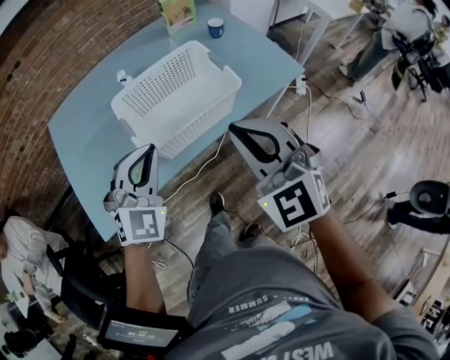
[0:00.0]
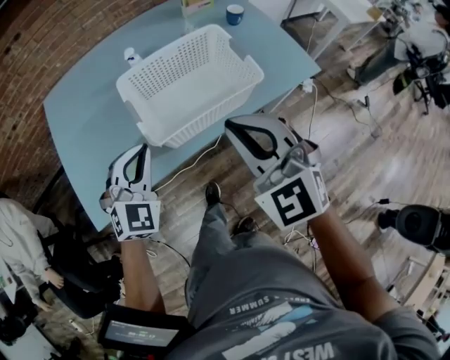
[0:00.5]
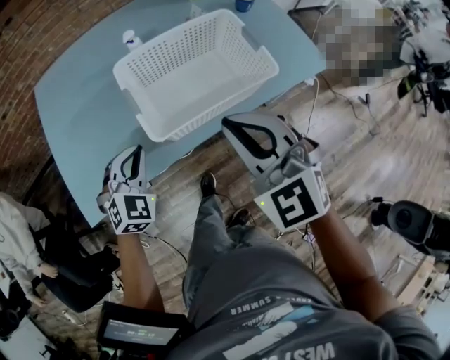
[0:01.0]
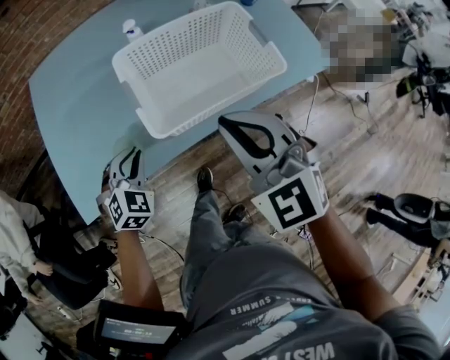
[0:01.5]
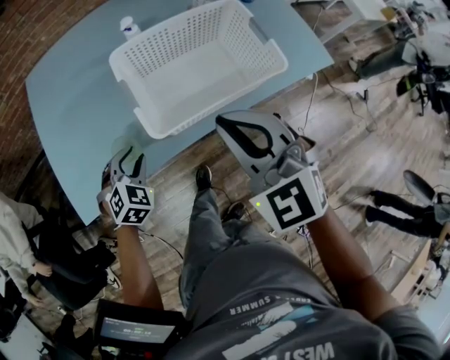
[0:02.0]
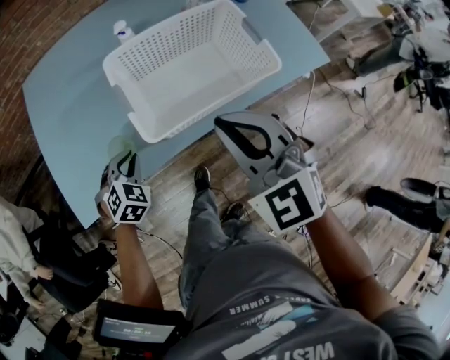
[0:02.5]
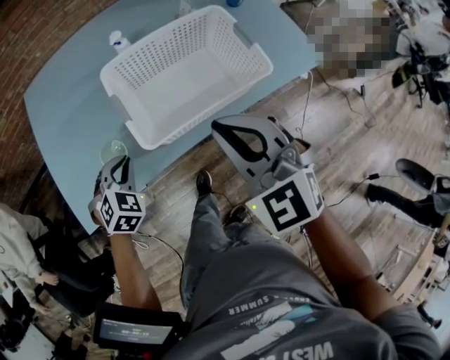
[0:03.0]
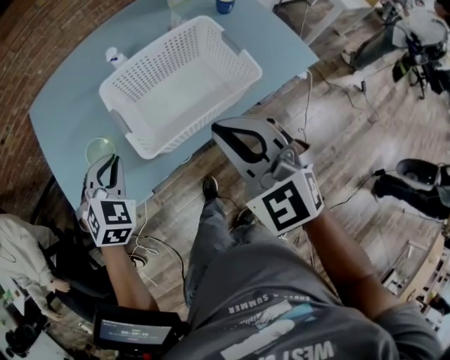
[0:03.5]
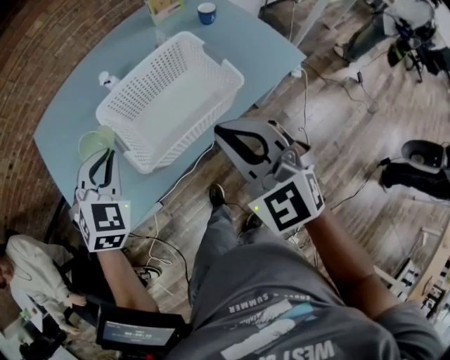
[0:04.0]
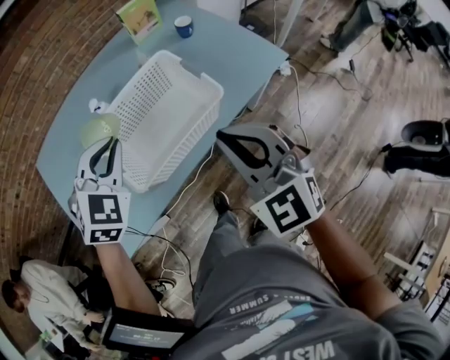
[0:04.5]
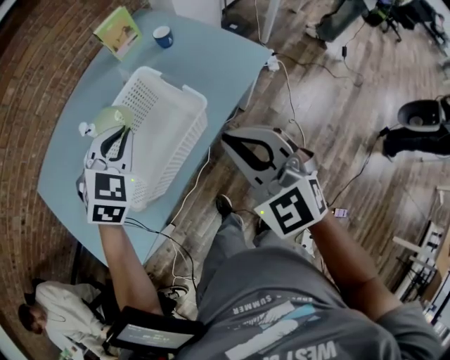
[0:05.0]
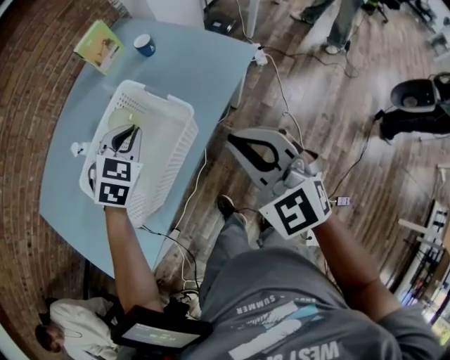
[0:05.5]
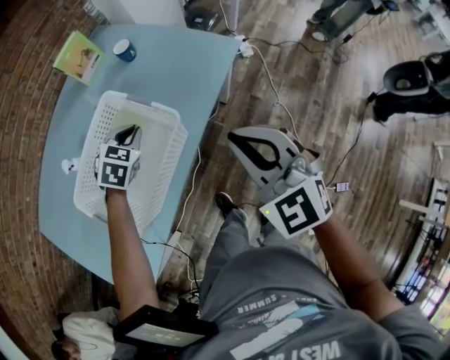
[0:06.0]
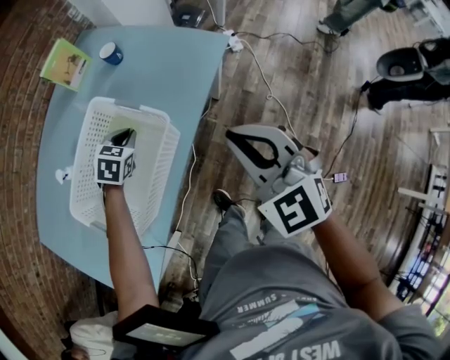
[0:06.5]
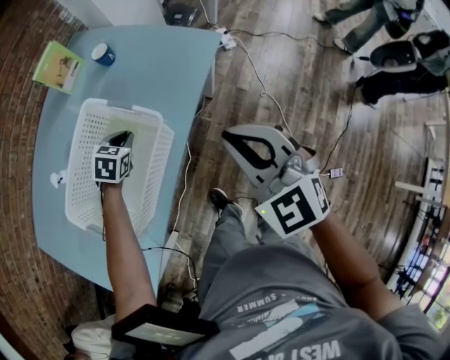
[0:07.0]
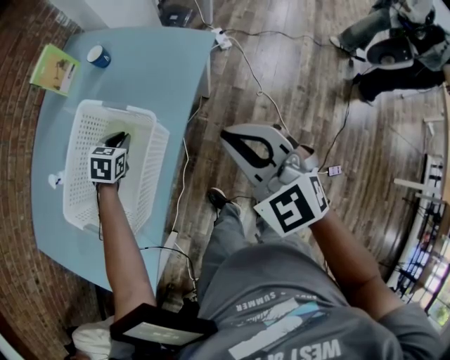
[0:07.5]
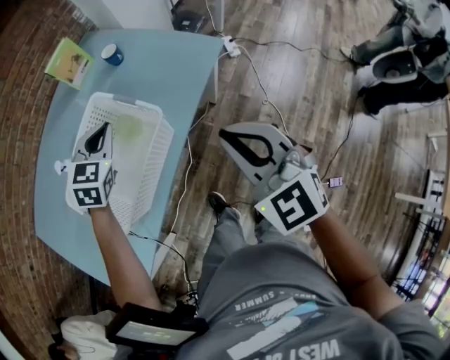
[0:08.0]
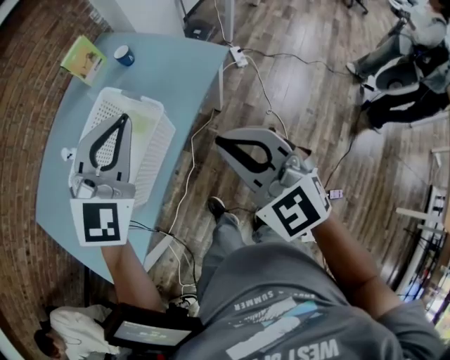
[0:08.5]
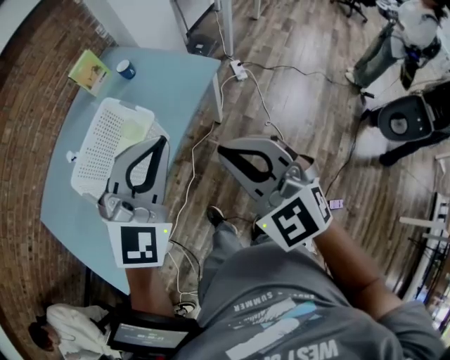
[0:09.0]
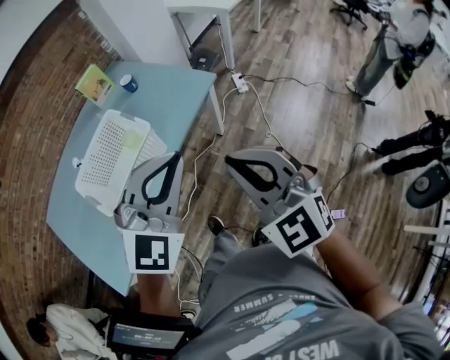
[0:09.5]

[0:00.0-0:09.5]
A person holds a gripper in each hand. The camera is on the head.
0:00.0 to 0:02.0: The right gripper goes roughly 15 cm to the left, downward and forward, while the left gripper shifts roughly 30 cm downward and to the left, tilts its fingers some 30 degrees downward, and opens its fingers.
0:02.0 to 0:04.0: The right gripper heads to the right, covering about 5 cm. The left gripper shifts approximately 20 cm upward, and closes its fingers.
0:04.0 to 0:05.5: The right gripper shifts roughly 15 cm to the right. Meanwhile the left gripper shifts some 25 cm to the right and forward, and rotates some 20 degrees.
0:05.5 to 0:07.5: The left gripper goes some 15 cm downward, and swivels approximately 20 degrees, while the right gripper travels to the right by about 5 cm.
0:07.5 to 0:09.5: The right gripper is displaced backward, upward and to the right by about 20 cm, while the left gripper goes about 50 cm upward, backward and to the right, and angles its fingers upward, by approximately 40 degrees.

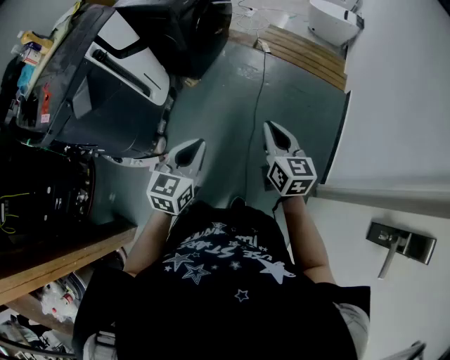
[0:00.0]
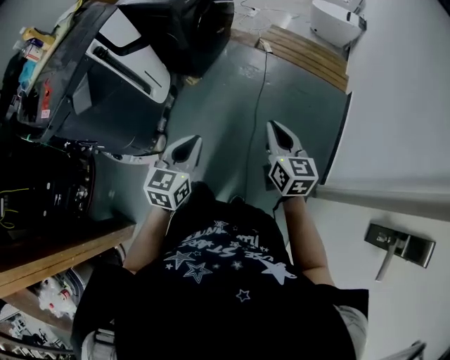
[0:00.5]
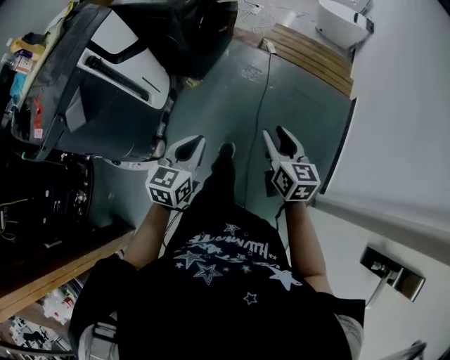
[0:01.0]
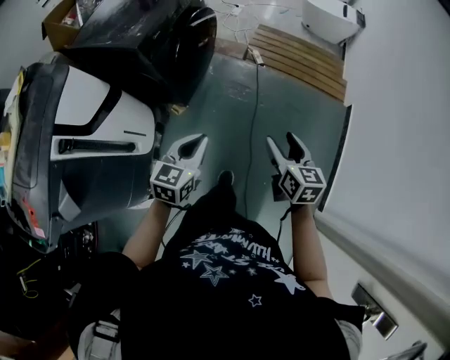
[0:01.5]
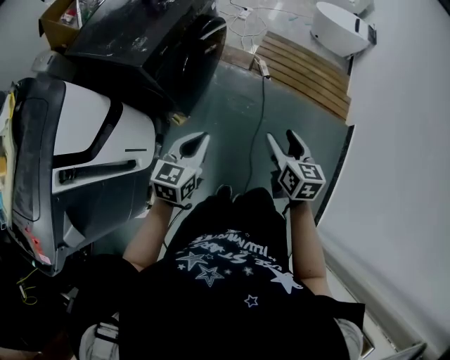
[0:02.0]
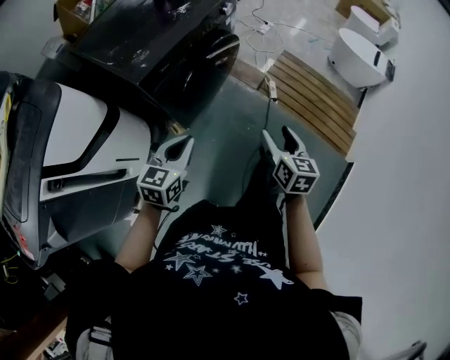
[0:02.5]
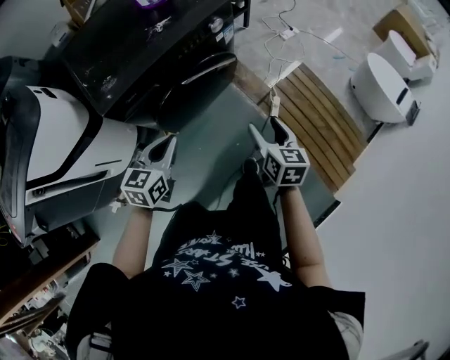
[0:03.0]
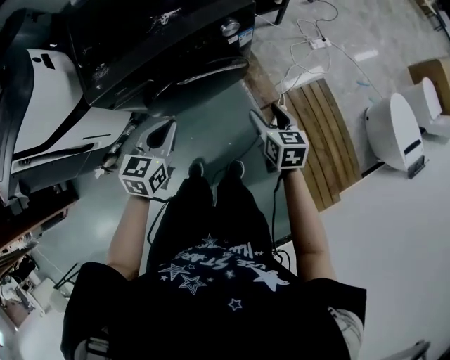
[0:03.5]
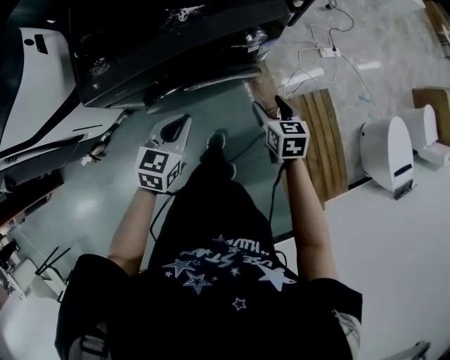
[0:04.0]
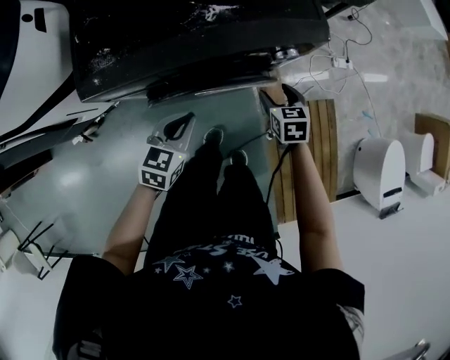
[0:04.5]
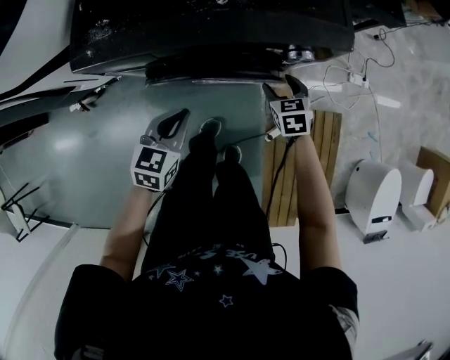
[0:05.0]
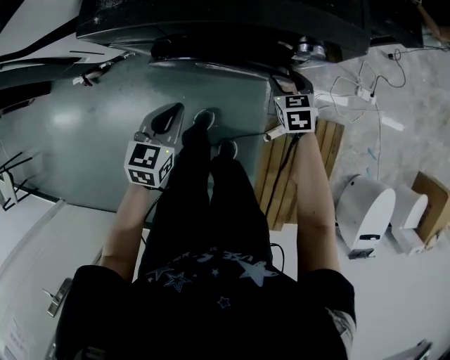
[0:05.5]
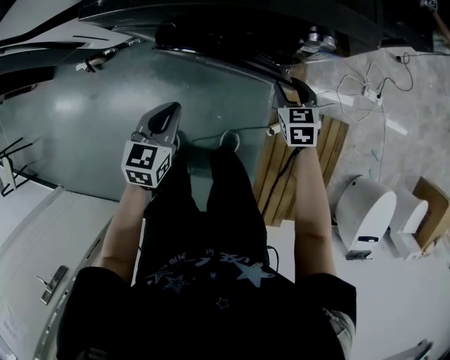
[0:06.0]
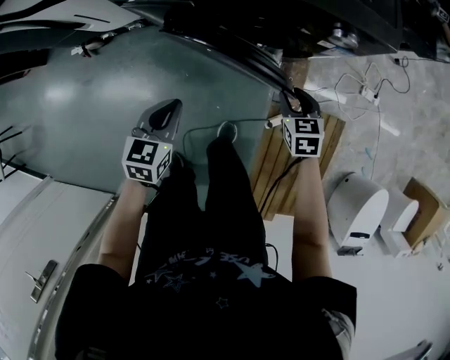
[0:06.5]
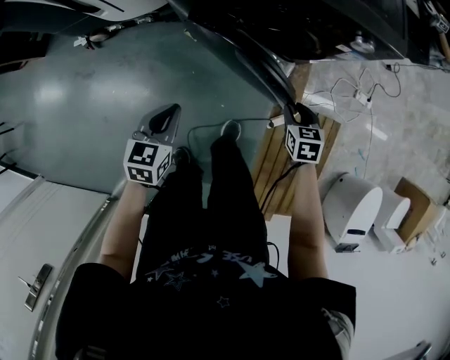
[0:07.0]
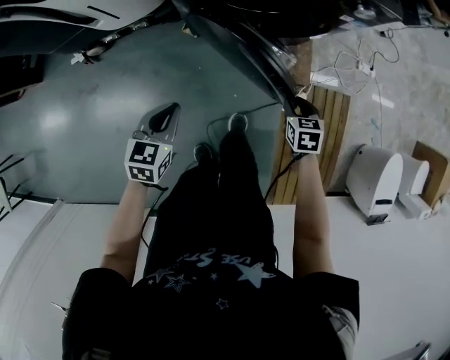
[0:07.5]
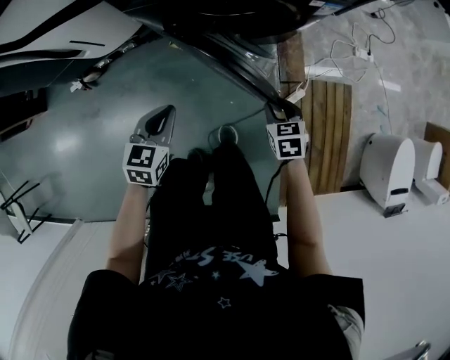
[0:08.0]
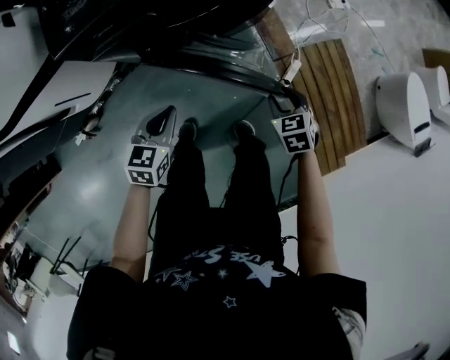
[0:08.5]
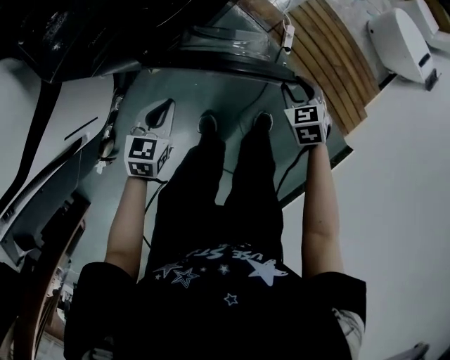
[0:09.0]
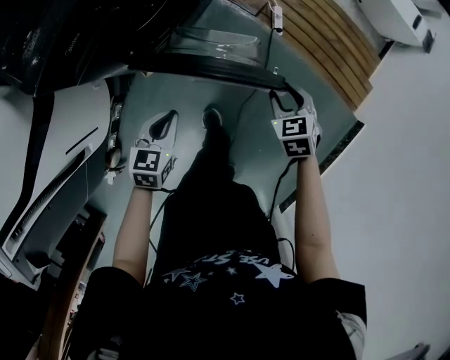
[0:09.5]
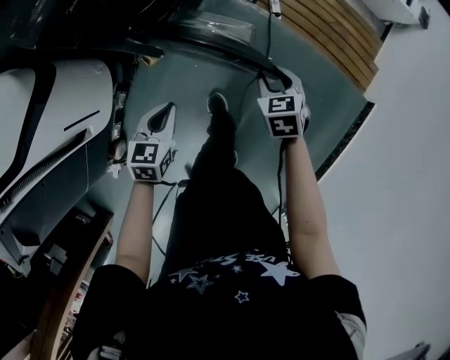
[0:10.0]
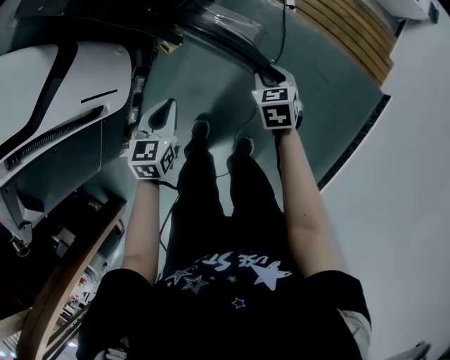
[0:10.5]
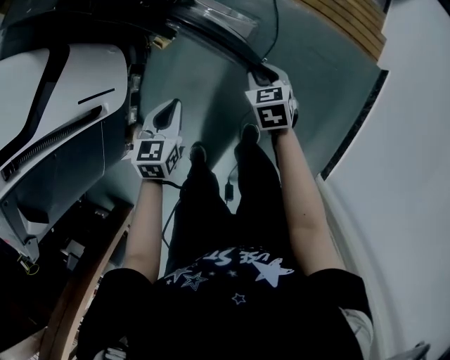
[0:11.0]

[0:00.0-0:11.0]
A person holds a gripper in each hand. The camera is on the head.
0:00.0 to 0:02.0: Both grippers are carried forward, about 50 cm. The right gripper opens its fingers.
0:02.0 to 0:03.5: The right gripper shifts by approximately 50 cm, and rotates some 50 degrees; the left gripper shifts by roughly 35 cm, and changes its angle by approximately 40 degrees.
0:03.5 to 0:05.5: The left gripper travels downward by about 10 cm, and swivels about 30 degrees, while the right gripper shifts by some 30 cm, and rolls counterclockwise, seen from behind, by approximately 40 degrees.
0:05.5 to 0:07.5: The left gripper moves backward and to the left, about 25 cm. The right gripper goes approximately 25 cm backward.
0:07.5 to 0:09.0: The left gripper ends up some 15 cm from where it was, and turns by some 50 degrees. Meanwhile the right gripper ends up about 10 cm from where it was, and turns by some 30 degrees.
0:09.0 to 0:11.0: Both grippers travel together backward, roughly 30 cm. The right gripper turns by approximately 30 degrees.

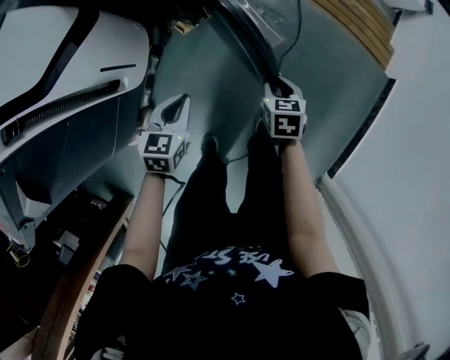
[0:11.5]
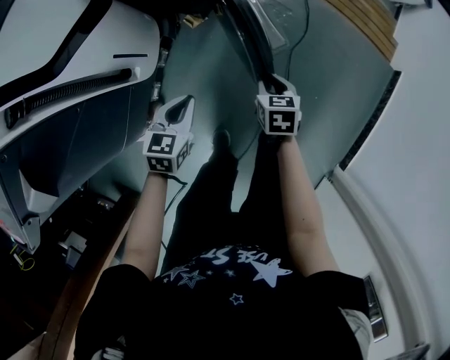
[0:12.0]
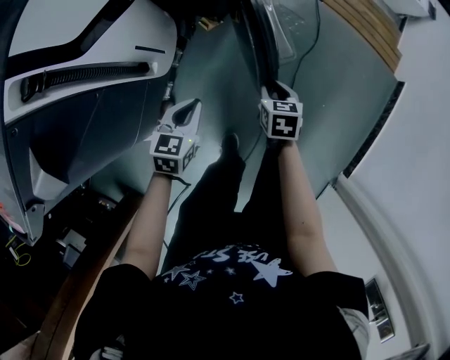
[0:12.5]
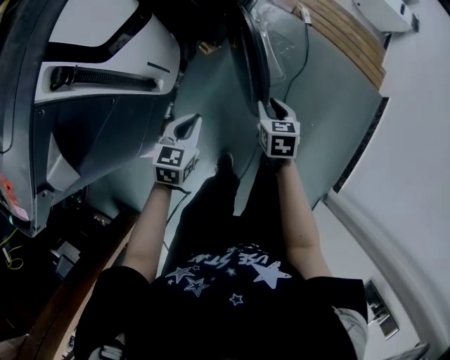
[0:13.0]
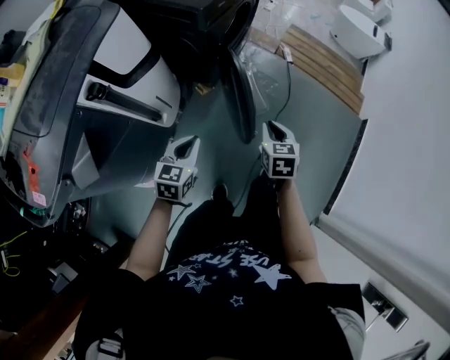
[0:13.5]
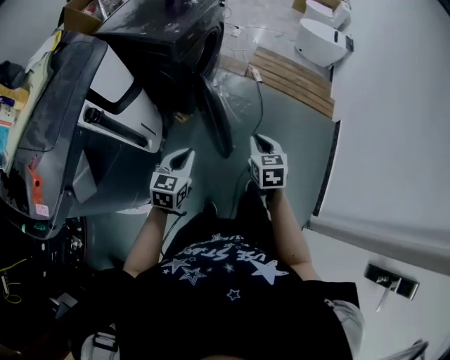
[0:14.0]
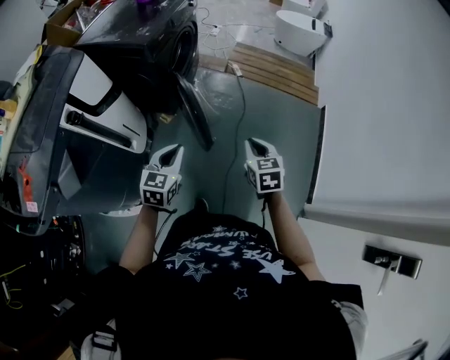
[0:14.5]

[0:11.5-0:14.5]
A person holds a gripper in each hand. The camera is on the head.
0:11.5 to 0:13.0: The left gripper heads to the left and backward, covering some 15 cm; the right gripper travels to the left, backward and upward by roughly 15 cm.
0:13.0 to 0:14.5: The right gripper heads upward, to the right and backward, covering about 25 cm, and closes. Meanwhile the left gripper is displaced upward and to the right by some 20 cm.

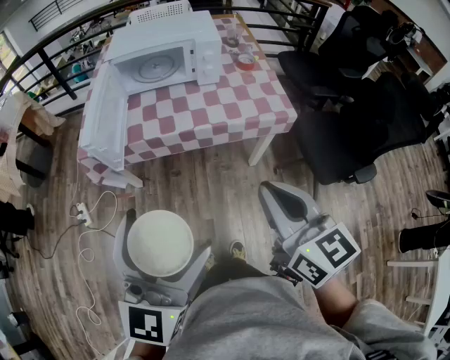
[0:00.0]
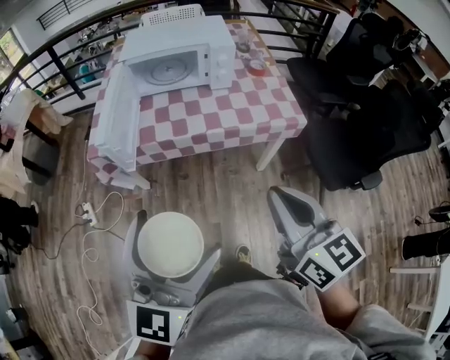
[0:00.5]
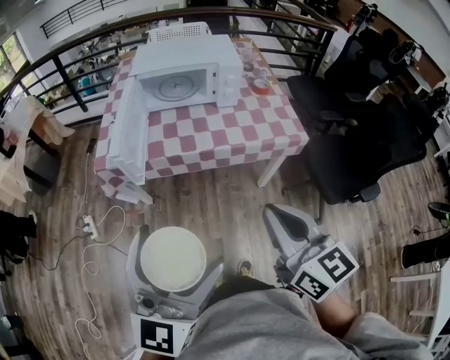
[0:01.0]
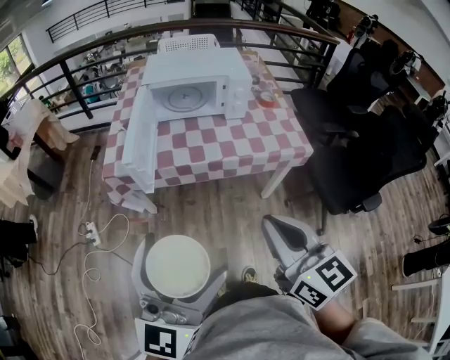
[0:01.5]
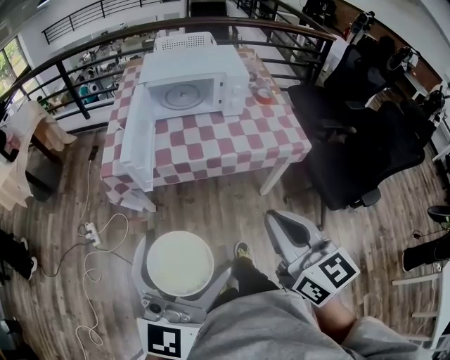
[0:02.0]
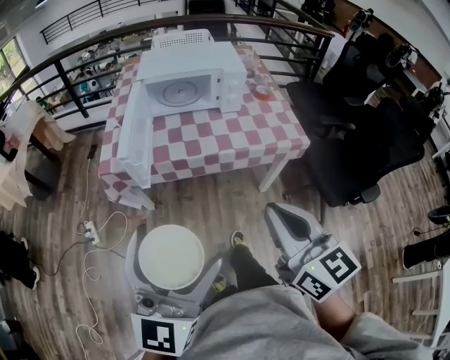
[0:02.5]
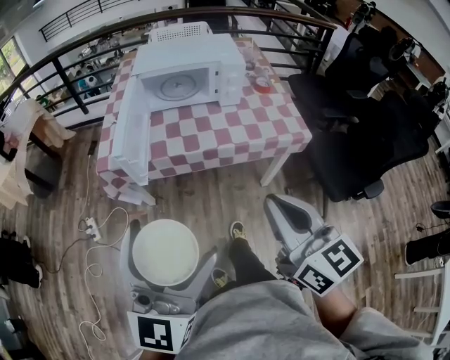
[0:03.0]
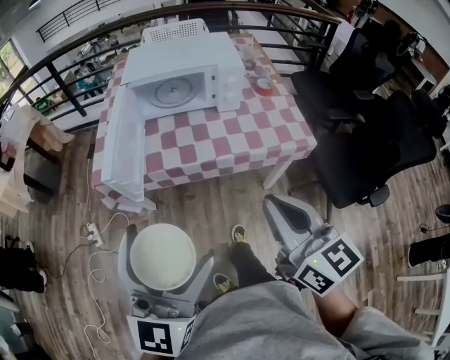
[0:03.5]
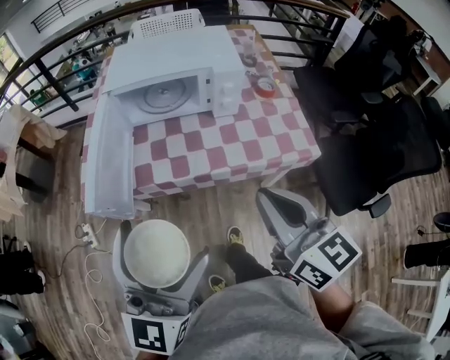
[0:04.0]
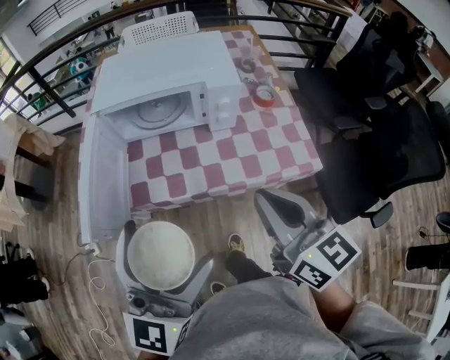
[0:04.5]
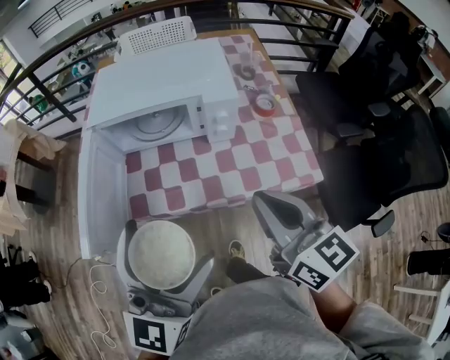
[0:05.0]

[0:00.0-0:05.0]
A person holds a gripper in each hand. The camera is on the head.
0:00.0 to 0:02.5: The grippers both shift to the left by roughly 10 cm.
0:02.5 to 0:05.0: The left gripper moves forward and to the right, about 30 cm; the right gripper moves forward, about 30 cm.
